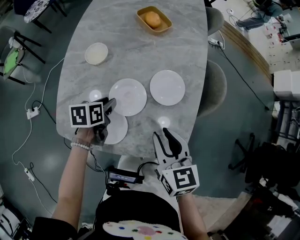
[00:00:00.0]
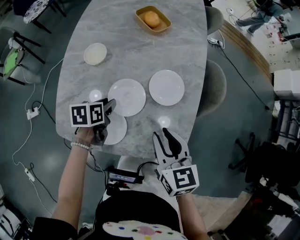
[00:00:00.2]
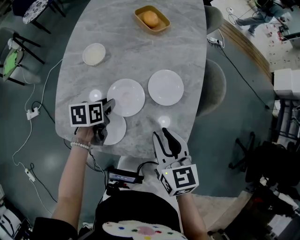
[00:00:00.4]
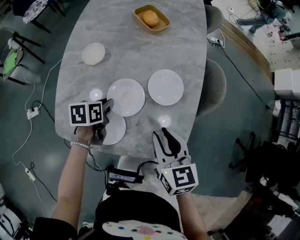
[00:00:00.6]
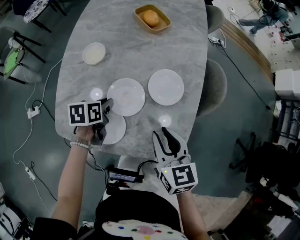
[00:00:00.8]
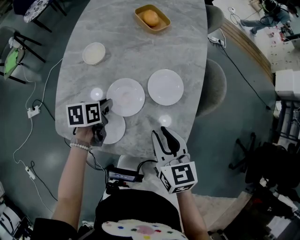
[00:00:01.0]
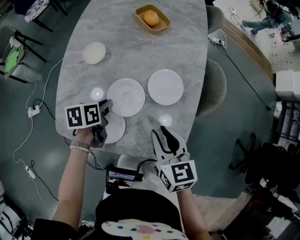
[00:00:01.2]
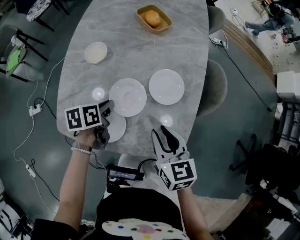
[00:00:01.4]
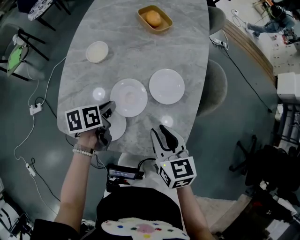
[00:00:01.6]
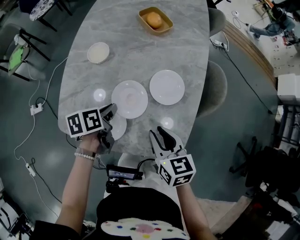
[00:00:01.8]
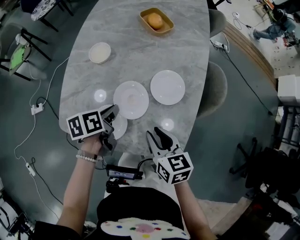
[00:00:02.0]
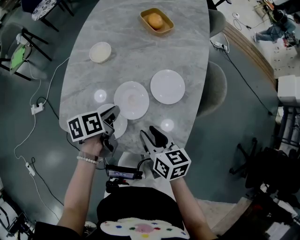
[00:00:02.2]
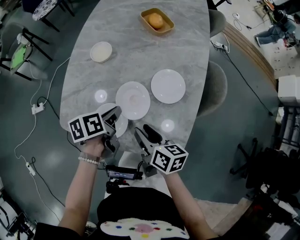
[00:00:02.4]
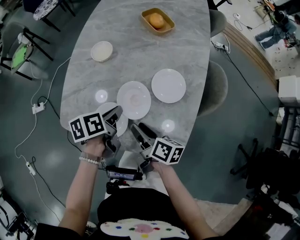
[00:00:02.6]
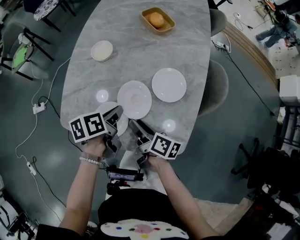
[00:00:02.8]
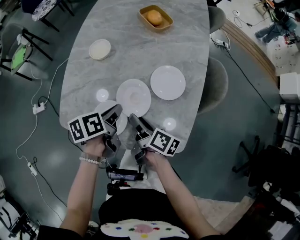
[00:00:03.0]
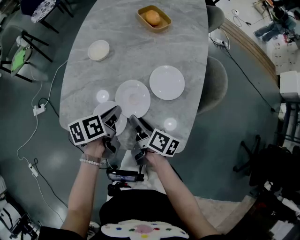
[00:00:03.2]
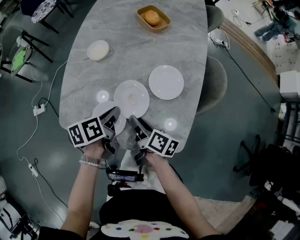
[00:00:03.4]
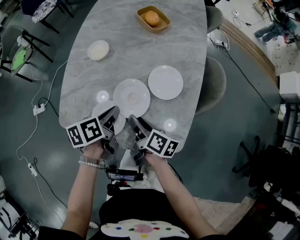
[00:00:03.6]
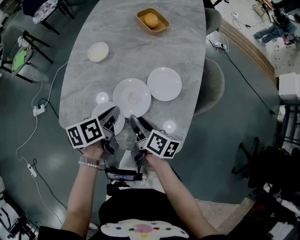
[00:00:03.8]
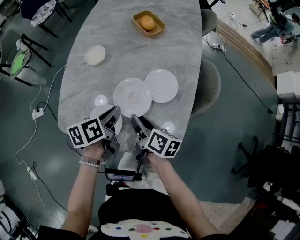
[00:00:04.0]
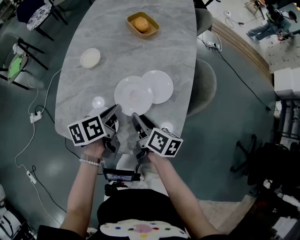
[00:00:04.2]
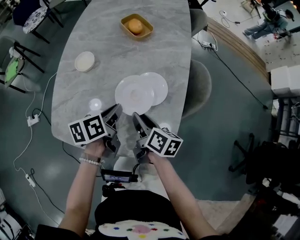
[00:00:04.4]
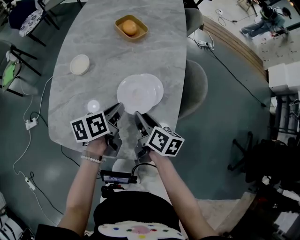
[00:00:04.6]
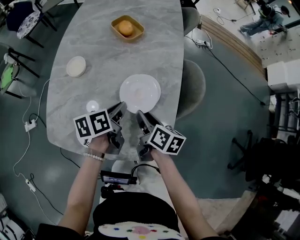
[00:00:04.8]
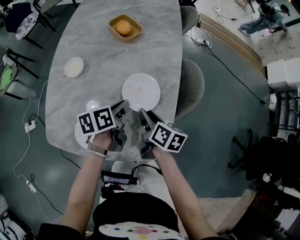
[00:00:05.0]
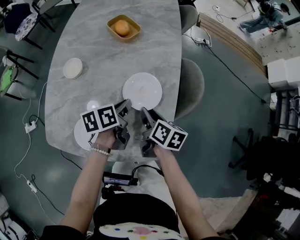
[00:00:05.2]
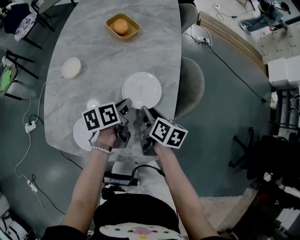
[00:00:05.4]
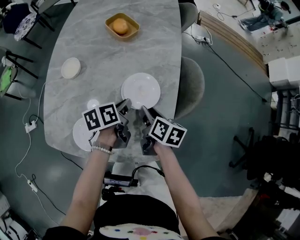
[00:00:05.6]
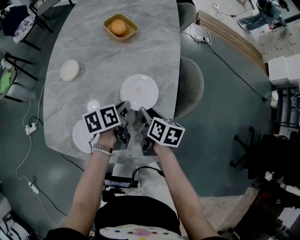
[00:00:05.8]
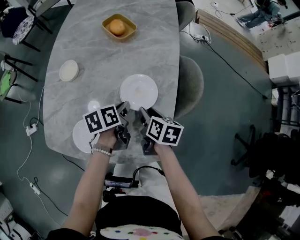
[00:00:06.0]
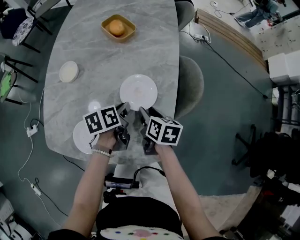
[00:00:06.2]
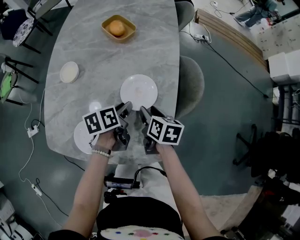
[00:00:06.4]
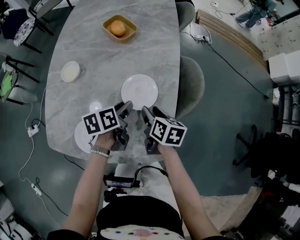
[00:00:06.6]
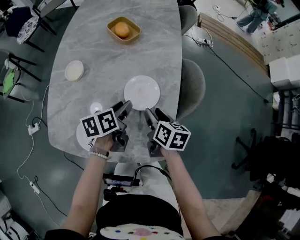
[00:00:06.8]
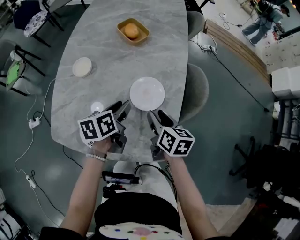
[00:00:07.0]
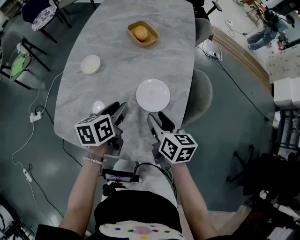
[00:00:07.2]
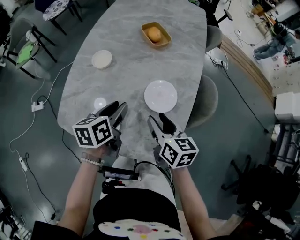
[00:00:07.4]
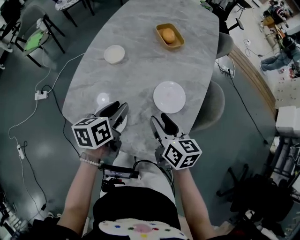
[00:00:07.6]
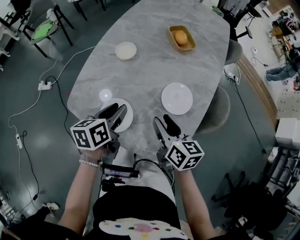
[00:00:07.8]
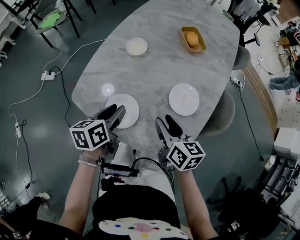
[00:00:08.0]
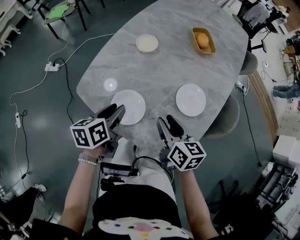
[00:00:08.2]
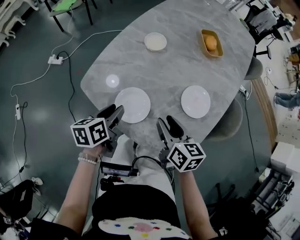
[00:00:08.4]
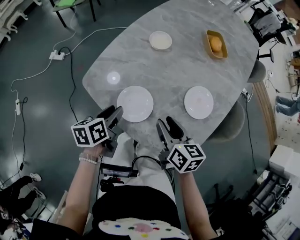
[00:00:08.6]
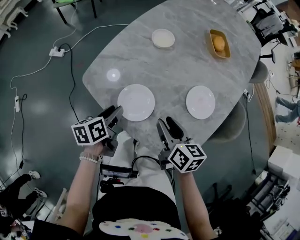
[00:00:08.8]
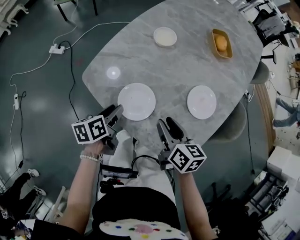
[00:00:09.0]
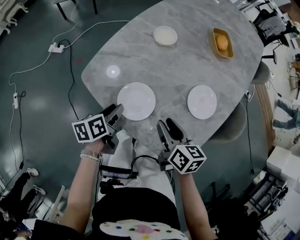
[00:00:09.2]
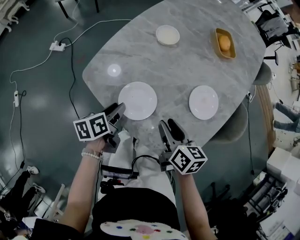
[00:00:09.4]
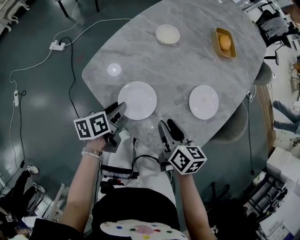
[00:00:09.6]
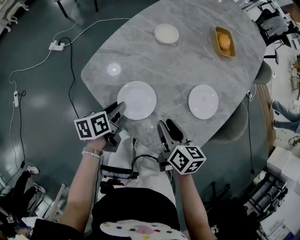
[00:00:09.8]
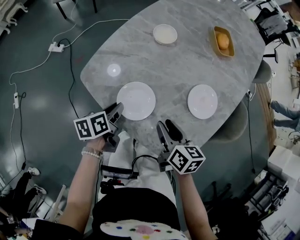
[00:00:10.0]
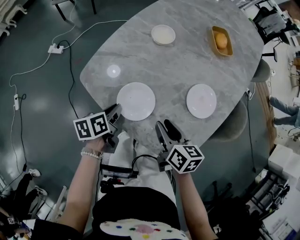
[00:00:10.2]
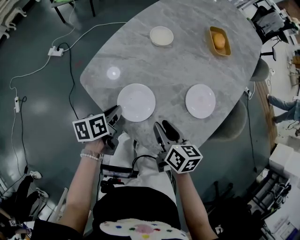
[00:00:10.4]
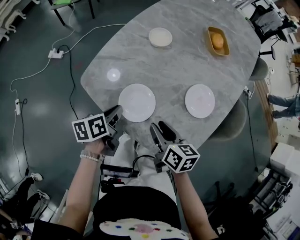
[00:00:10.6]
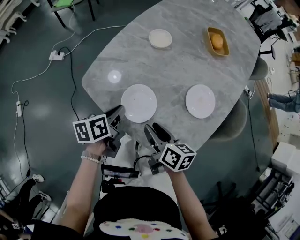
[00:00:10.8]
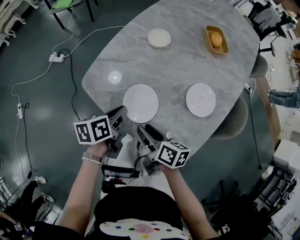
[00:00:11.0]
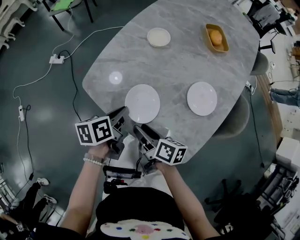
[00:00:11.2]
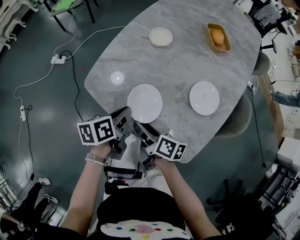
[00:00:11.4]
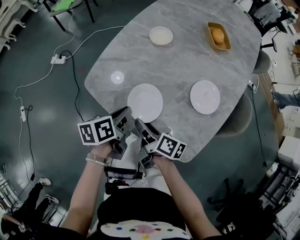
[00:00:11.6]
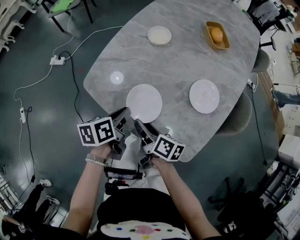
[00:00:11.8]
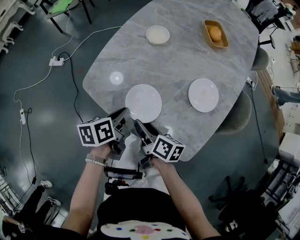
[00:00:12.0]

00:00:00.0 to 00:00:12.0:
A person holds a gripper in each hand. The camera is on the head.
00:00:00.0 to 00:00:01.6: The left gripper closes its fingers.
00:00:01.6 to 00:00:03.0: The right gripper goes roughly 10 cm downward and to the left, and twists some 60 degrees clockwise, seen from behind.
00:00:03.0 to 00:00:04.4: The two grippers go roughly 5 cm to the right.
00:00:04.4 to 00:00:06.0: The left gripper shifts roughly 10 cm downward and to the right, while the right gripper moves to the right, roughly 5 cm.
00:00:06.0 to 00:00:07.6: The left gripper goes approximately 15 cm to the left, upward and backward, swivels about 20 degrees, and opens its fingers; the right gripper is displaced upward and to the left by about 15 cm, and swivels roughly 30 degrees.
00:00:07.6 to 00:00:09.0: The right gripper goes roughly 10 cm to the left and downward. Meanwhile the left gripper travels to the left, downward and backward by about 20 cm, and rotates some 30 degrees.
00:00:09.0 to 00:00:10.4: The left gripper closes.
00:00:10.4 to 00:00:12.0: The right gripper moves to the left, roughly 10 cm, and changes its angle by some 30 degrees.

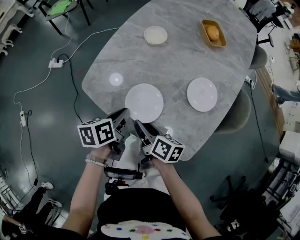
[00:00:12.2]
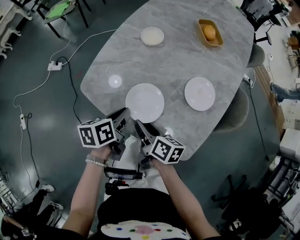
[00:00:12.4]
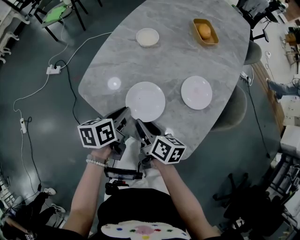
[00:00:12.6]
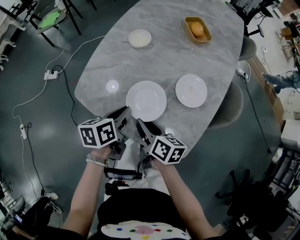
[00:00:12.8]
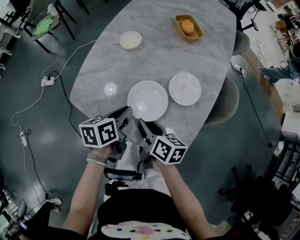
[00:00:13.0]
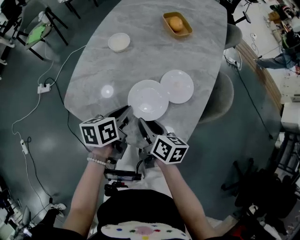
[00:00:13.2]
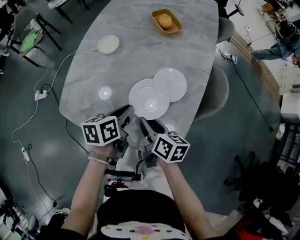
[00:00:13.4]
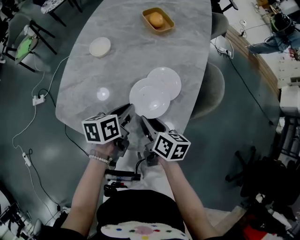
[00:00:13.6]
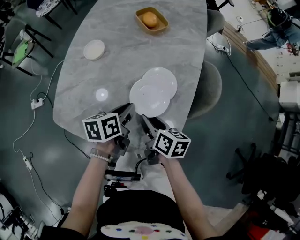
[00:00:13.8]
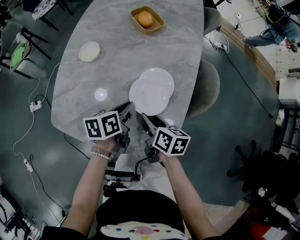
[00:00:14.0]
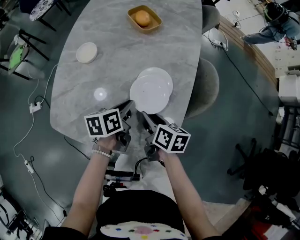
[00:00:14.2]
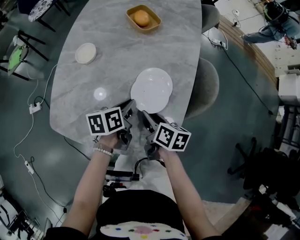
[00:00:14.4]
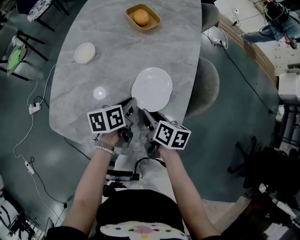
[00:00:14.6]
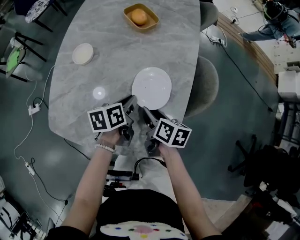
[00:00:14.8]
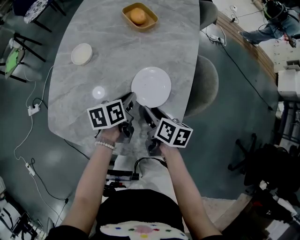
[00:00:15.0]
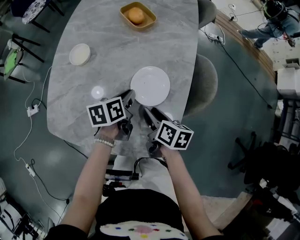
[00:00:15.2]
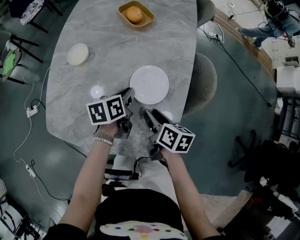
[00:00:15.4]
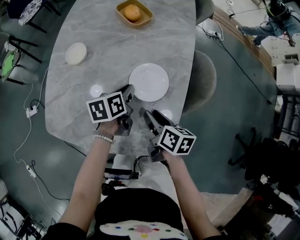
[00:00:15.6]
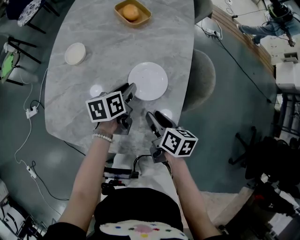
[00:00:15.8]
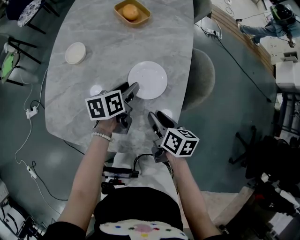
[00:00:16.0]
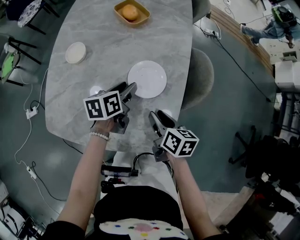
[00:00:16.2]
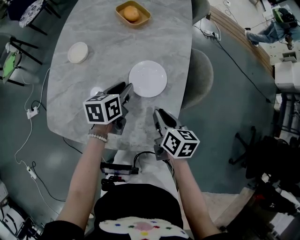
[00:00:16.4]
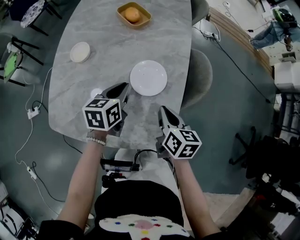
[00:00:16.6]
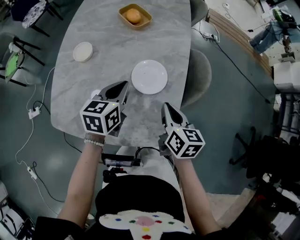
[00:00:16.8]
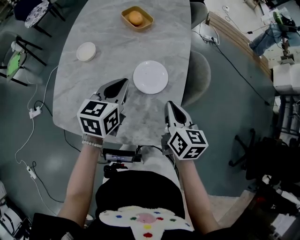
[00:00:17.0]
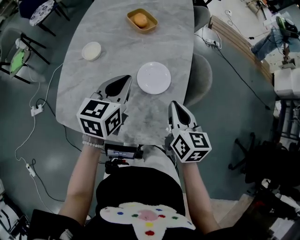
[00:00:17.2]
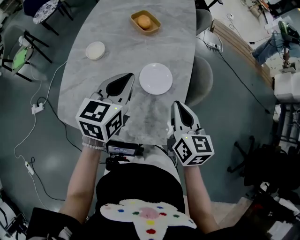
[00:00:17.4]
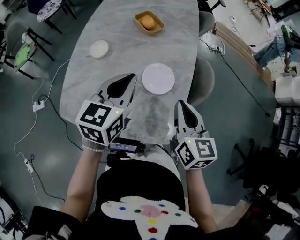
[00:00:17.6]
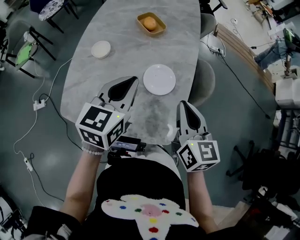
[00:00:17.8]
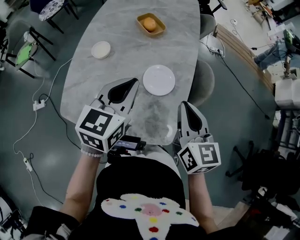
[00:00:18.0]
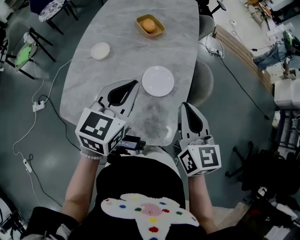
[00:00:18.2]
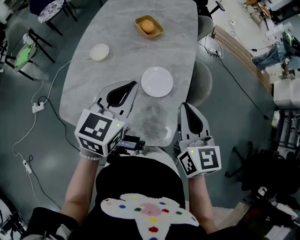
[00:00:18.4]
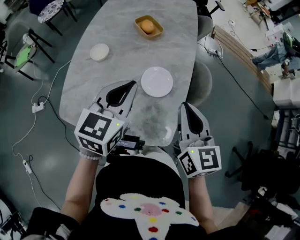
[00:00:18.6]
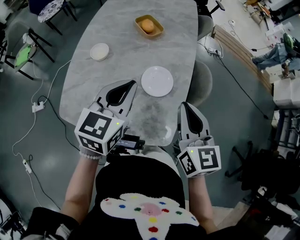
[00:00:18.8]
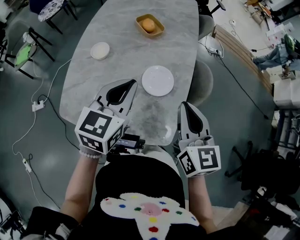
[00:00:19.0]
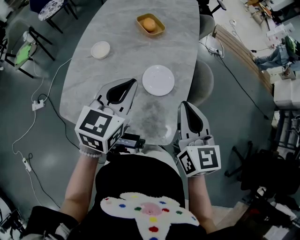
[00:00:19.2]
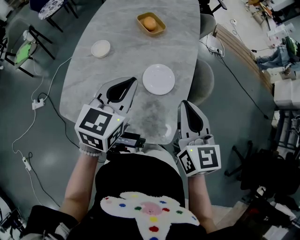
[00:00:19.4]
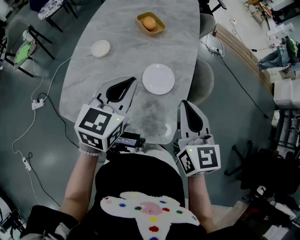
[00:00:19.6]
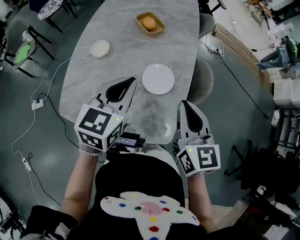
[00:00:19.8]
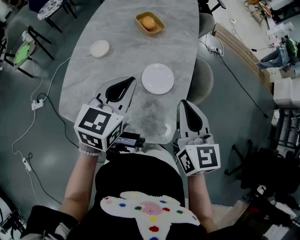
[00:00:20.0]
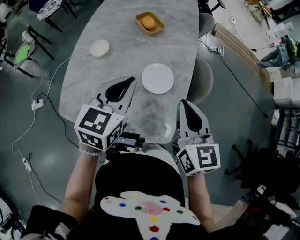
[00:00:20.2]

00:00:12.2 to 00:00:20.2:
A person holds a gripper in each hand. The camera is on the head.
00:00:12.2 to 00:00:13.8: The right gripper heads to the right, covering roughly 15 cm, and rotates roughly 20 degrees. The left gripper goes approximately 20 cm to the right and forward, and changes its angle by about 20 degrees.
00:00:13.8 to 00:00:15.4: The left gripper moves forward, some 5 cm; the right gripper moves about 5 cm.
00:00:15.4 to 00:00:17.0: The right gripper travels upward and to the right by some 10 cm, rotates approximately 30 degrees, and closes its fingers; the left gripper is displaced upward by about 15 cm, turns by roughly 30 degrees, and opens and closes again.
00:00:17.0 to 00:00:18.6: The grippers both shift upward by approximately 15 cm. The right gripper rotates some 20 degrees.
00:00:18.6 to 00:00:20.2: Both grippers stay put.

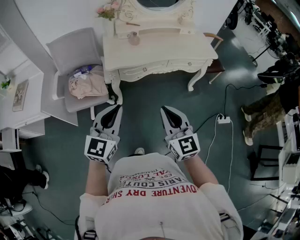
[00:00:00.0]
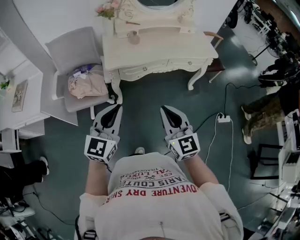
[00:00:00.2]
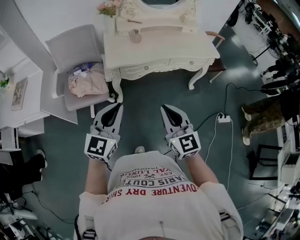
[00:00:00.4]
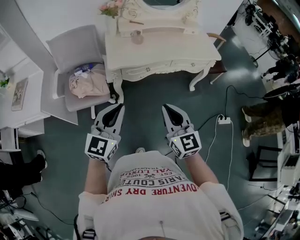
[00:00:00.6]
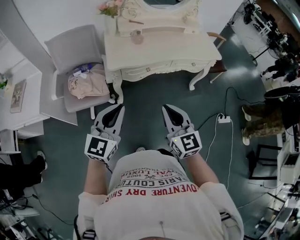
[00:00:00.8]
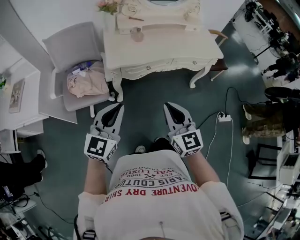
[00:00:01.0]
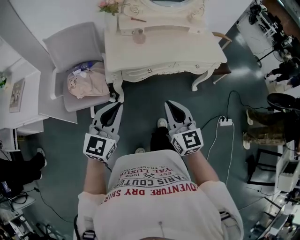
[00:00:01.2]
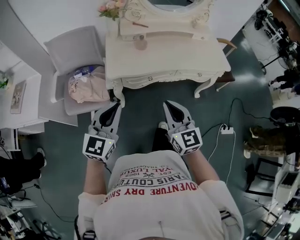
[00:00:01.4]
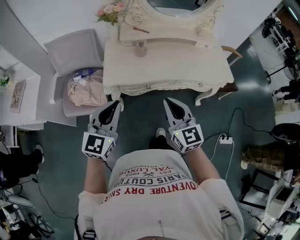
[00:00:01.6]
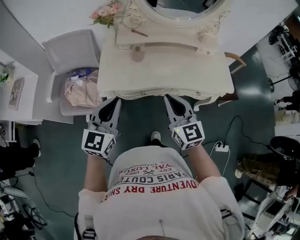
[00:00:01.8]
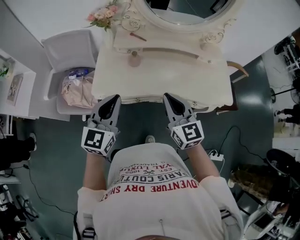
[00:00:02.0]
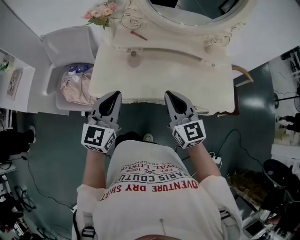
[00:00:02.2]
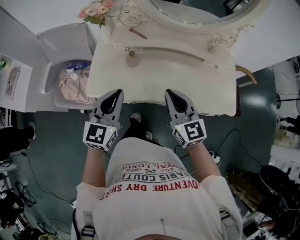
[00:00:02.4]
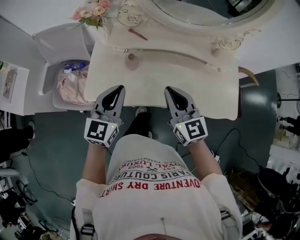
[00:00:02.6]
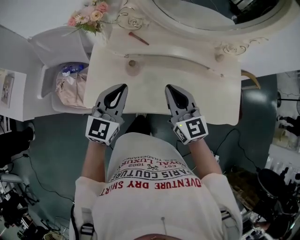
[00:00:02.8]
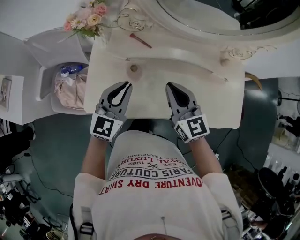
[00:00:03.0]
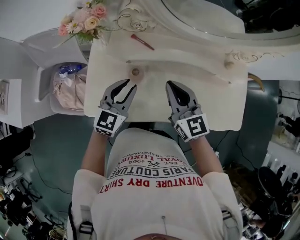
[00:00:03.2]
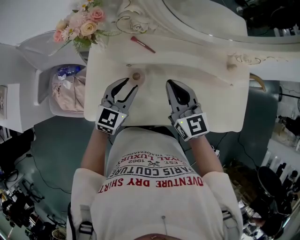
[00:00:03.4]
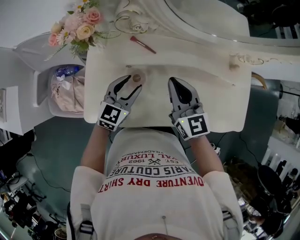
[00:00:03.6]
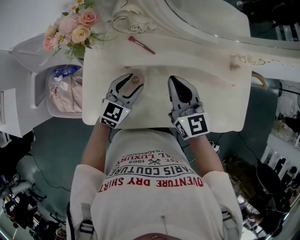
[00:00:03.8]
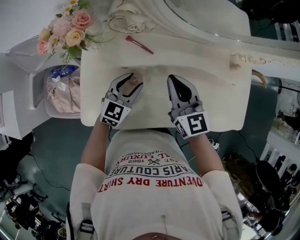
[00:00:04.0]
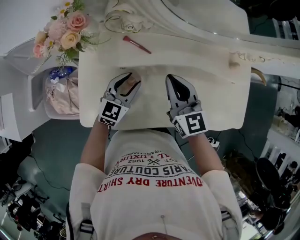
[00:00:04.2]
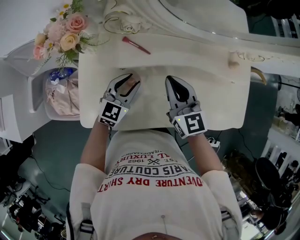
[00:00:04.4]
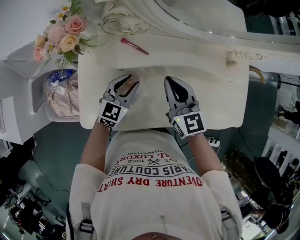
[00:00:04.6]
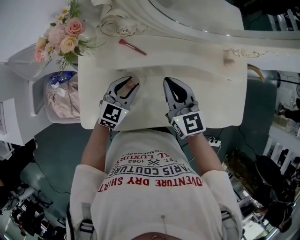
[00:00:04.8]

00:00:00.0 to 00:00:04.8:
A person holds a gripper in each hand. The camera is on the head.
00:00:00.0 to 00:00:01.6: The two grippers go approximately 25 cm forward.
00:00:01.6 to 00:00:03.2: Both grippers are carried forward, some 40 cm.
00:00:03.2 to 00:00:04.8: The left gripper travels downward and forward by approximately 10 cm. Meanwhile the right gripper goes roughly 5 cm forward.
